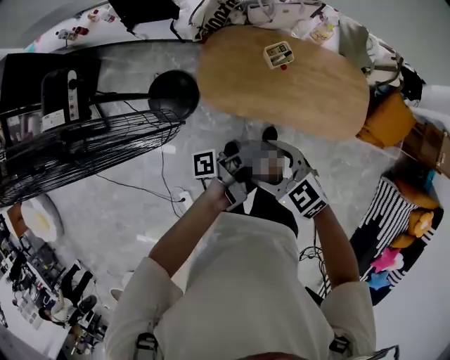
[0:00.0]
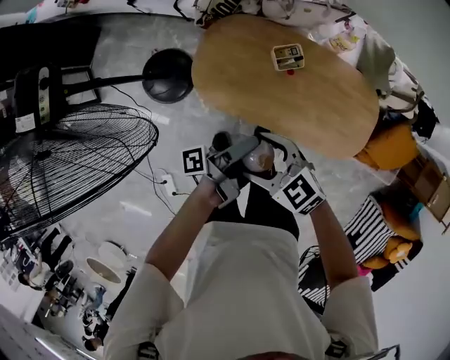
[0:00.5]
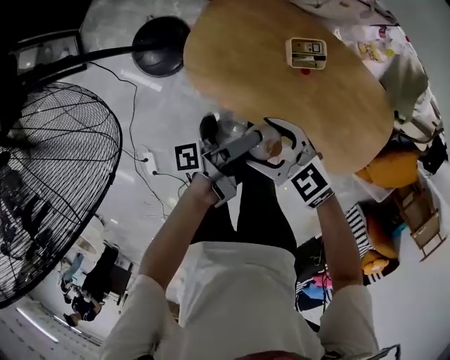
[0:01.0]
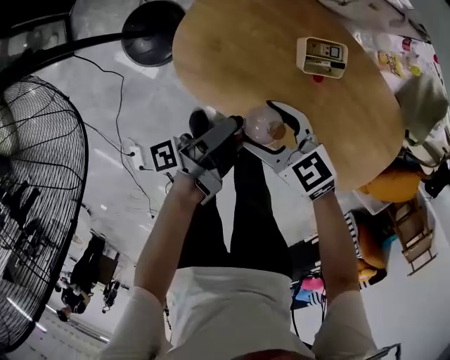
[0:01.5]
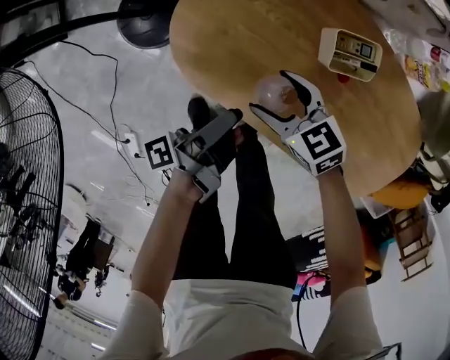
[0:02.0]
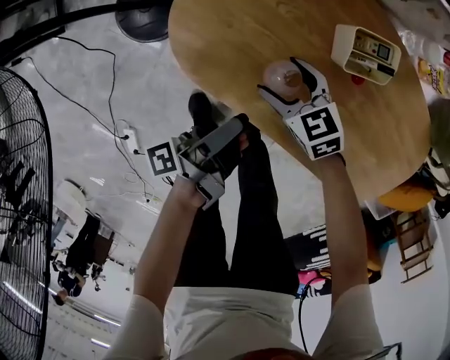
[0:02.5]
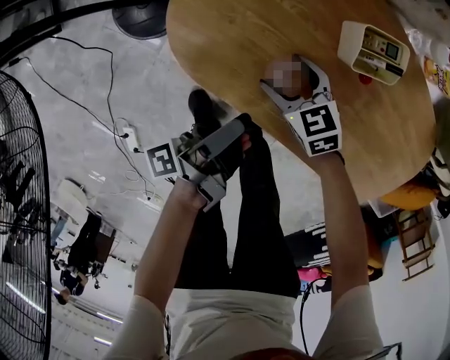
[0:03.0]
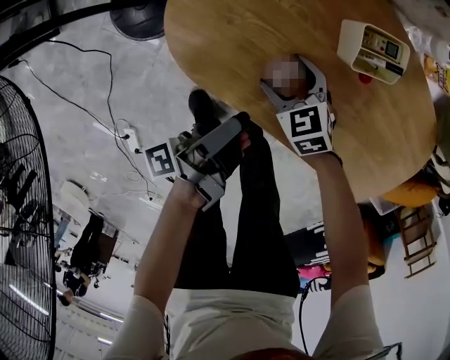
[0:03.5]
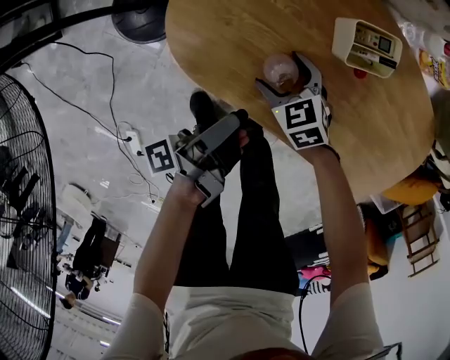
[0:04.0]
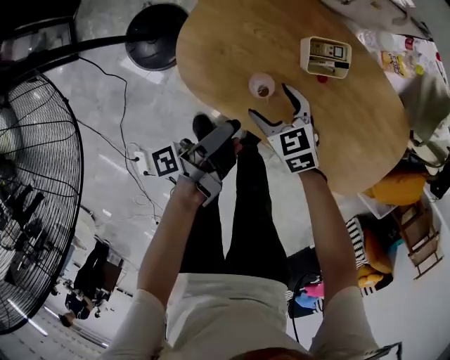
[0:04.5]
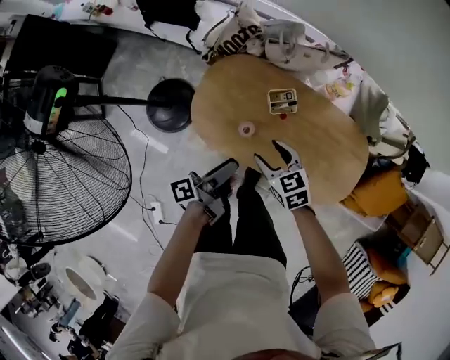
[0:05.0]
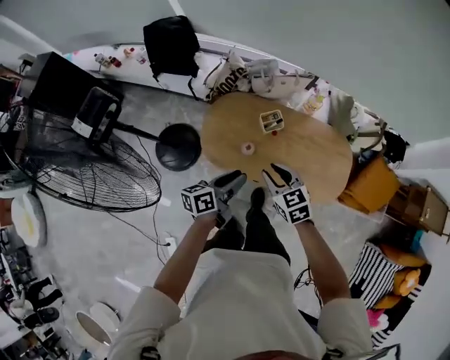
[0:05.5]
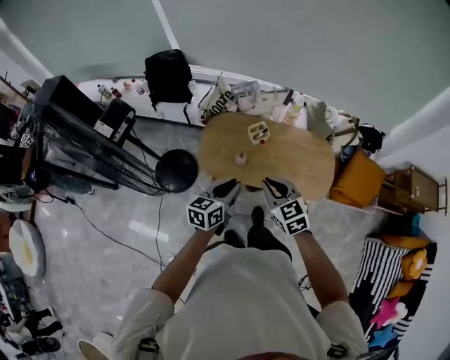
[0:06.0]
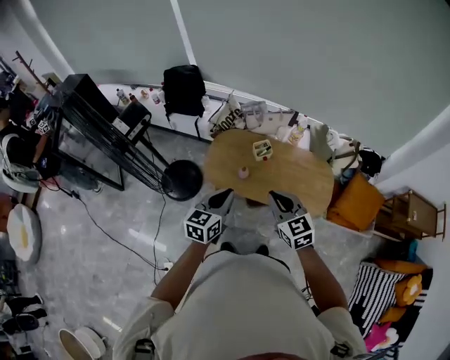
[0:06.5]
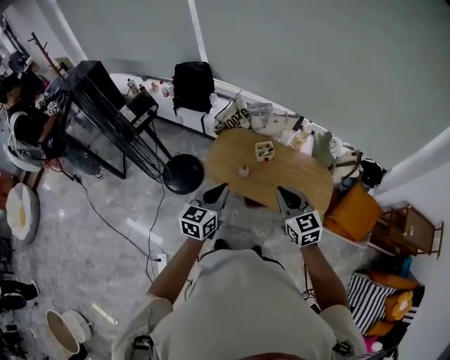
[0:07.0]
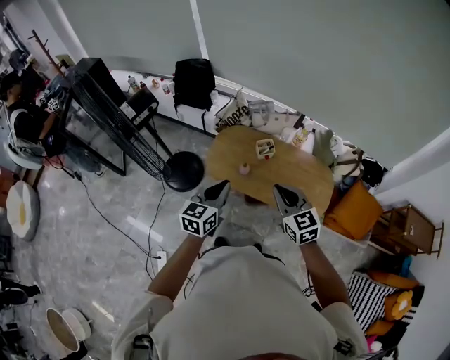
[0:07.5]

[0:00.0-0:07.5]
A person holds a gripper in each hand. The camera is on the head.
0:00.0 to 0:02.0: The right gripper travels downward by about 40 cm.
0:02.0 to 0:04.0: The right gripper travels downward by approximately 10 cm, and changes its angle by roughly 20 degrees.
0:04.0 to 0:05.5: The right gripper travels upward by roughly 50 cm, turns by approximately 30 degrees, and closes.
0:05.5 to 0:07.5: The right gripper goes some 20 cm upward.

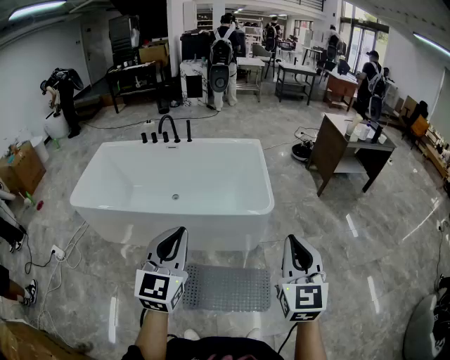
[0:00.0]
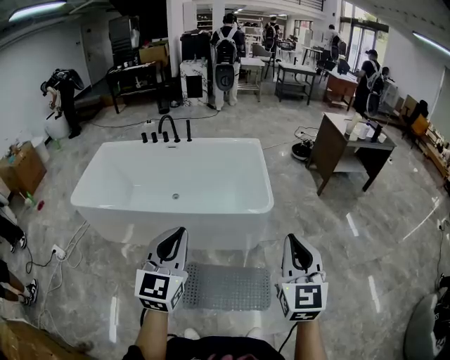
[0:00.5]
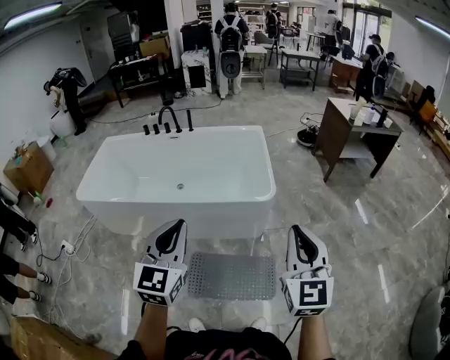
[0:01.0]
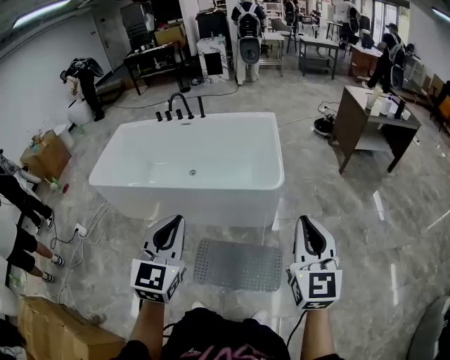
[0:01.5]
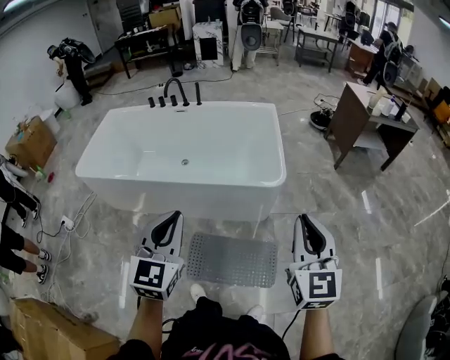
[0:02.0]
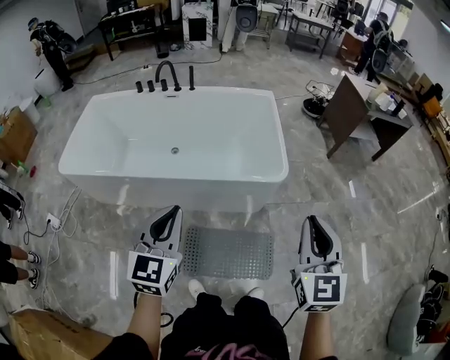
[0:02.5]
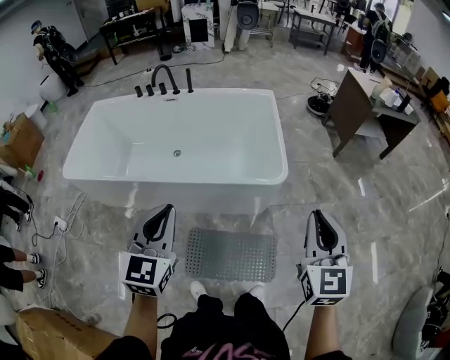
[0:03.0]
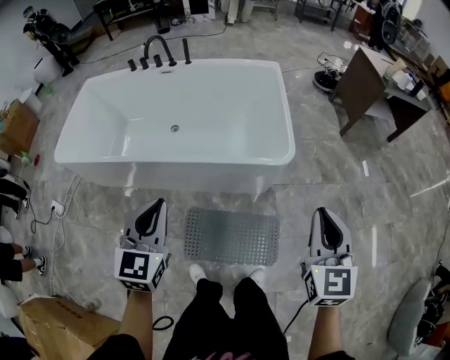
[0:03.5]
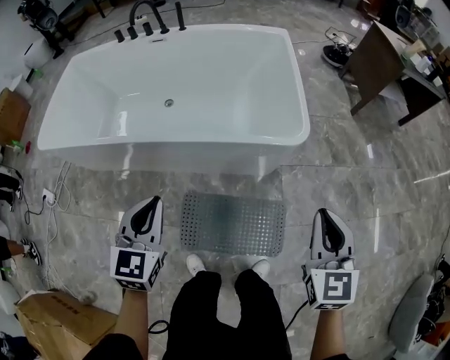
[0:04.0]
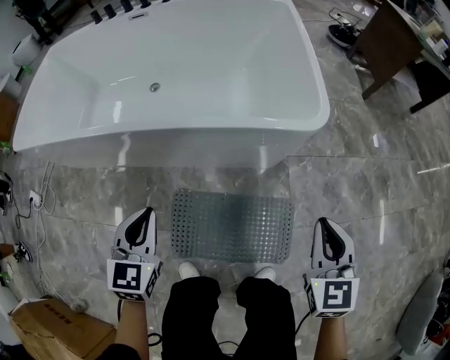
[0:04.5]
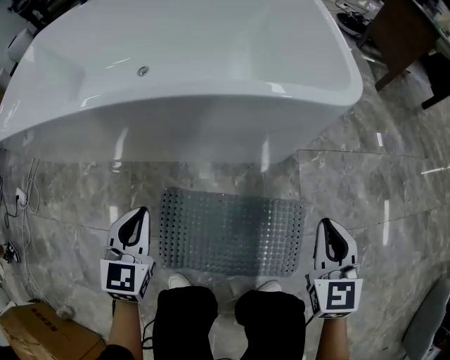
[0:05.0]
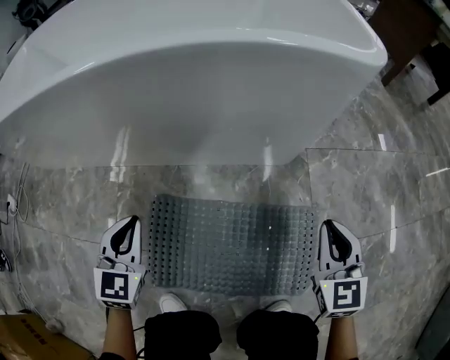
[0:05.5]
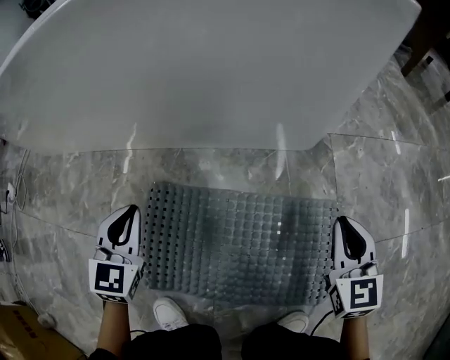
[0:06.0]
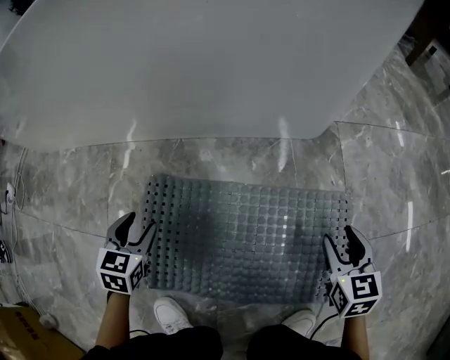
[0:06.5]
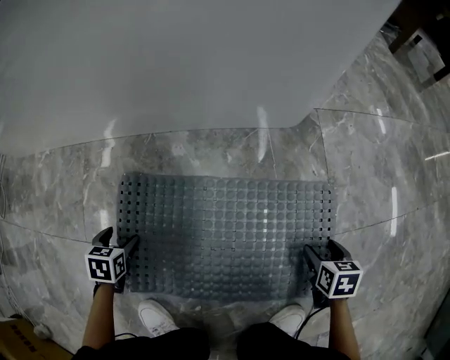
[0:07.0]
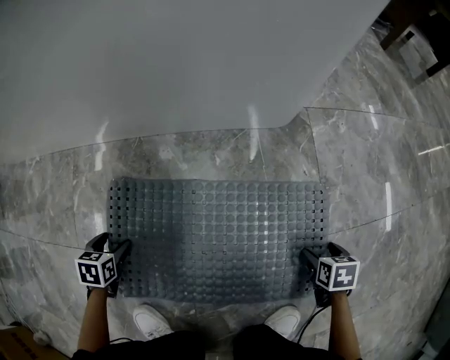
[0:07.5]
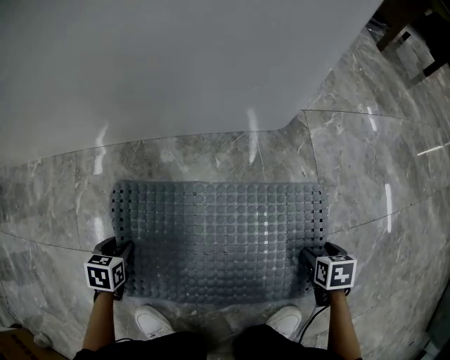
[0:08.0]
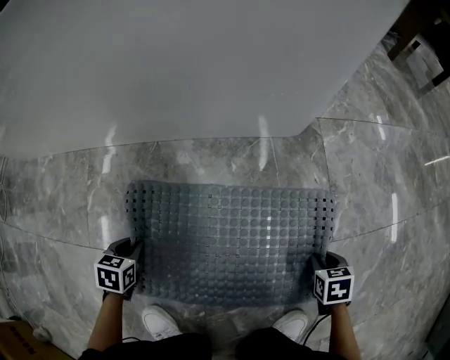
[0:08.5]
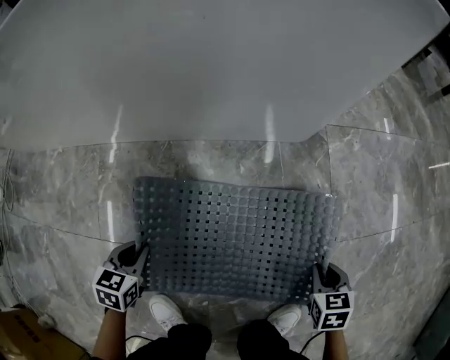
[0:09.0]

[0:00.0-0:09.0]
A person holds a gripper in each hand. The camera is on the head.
0:00.0 to 0:02.0: The right gripper changes place by some 5 cm; the left gripper travels downward by roughly 5 cm.
0:02.0 to 0:04.5: The two grippers go roughly 40 cm downward. The left gripper swivels roughly 20 degrees; the right gripper swivels roughly 20 degrees.
0:04.5 to 0:07.0: The grippers both shift downward by some 60 cm. The right gripper angles its fingers downward, by about 40 degrees, and opens; the left gripper tips its fingers downward by approximately 40 degrees, and opens.
0:07.0 to 0:09.0: Both grippers move upward, some 10 cm. The right gripper closes up; the left gripper closes up.

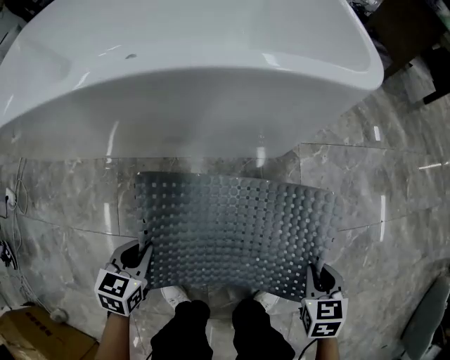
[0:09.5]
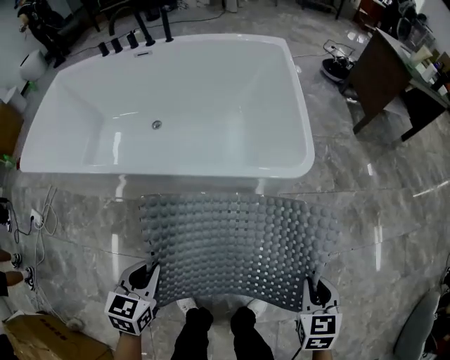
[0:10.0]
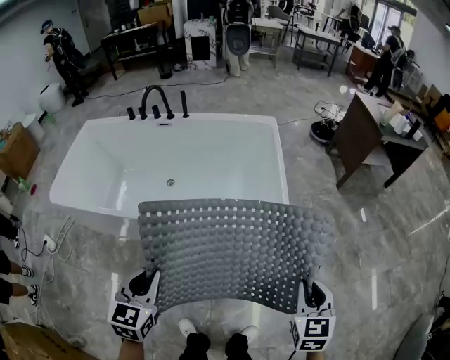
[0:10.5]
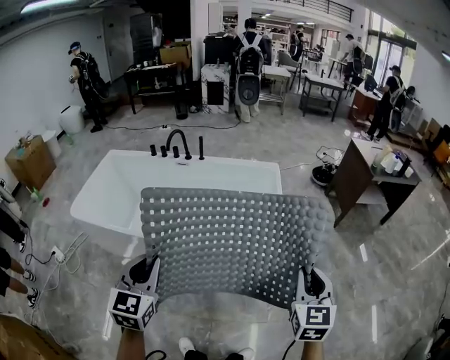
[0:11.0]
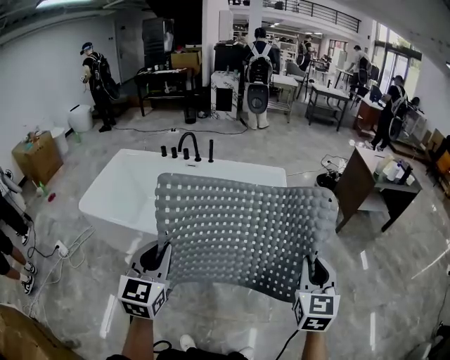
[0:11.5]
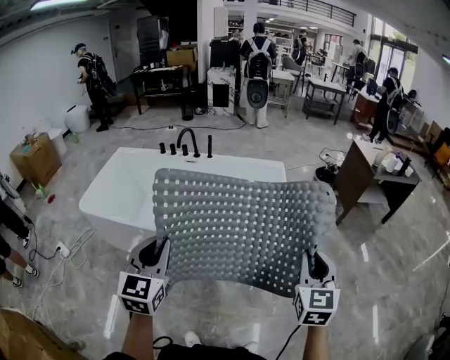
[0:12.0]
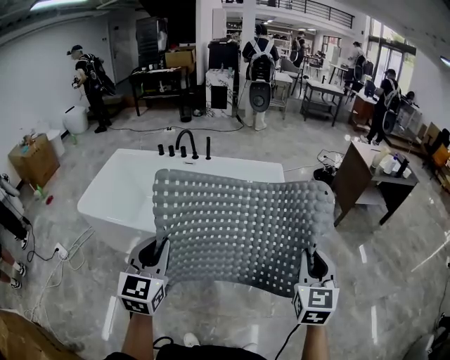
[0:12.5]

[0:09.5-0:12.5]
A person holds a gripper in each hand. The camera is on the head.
0:09.5 to 0:11.0: Both grippers move upward, approximately 70 cm. The left gripper tilts its fingers roughly 40 degrees upward; the right gripper tilts its fingers about 40 degrees upward.
0:11.0 to 0:12.5: The right gripper moves about 5 cm.

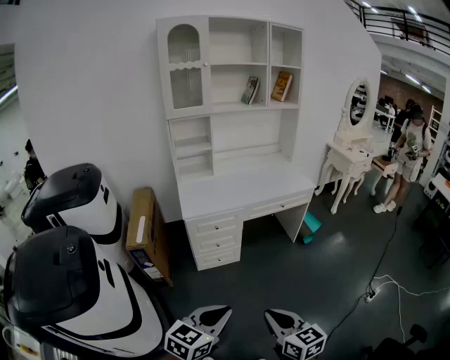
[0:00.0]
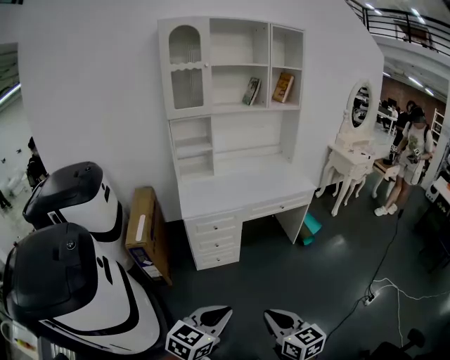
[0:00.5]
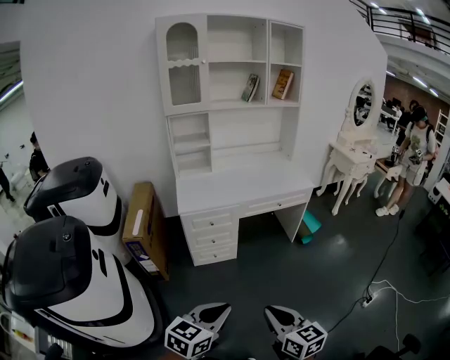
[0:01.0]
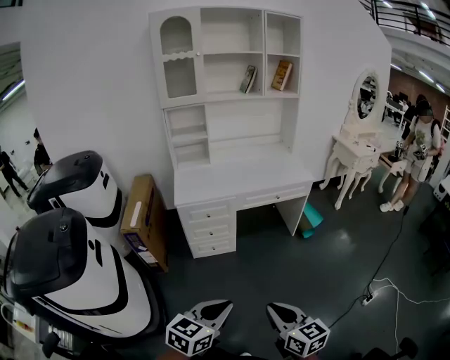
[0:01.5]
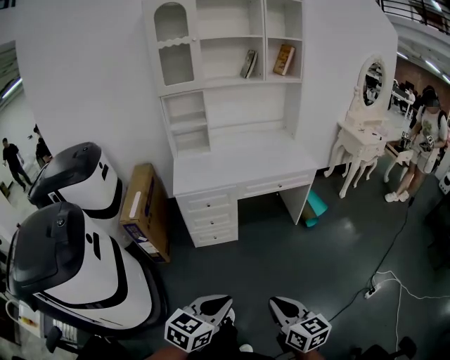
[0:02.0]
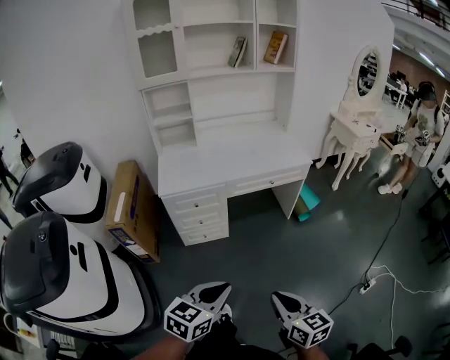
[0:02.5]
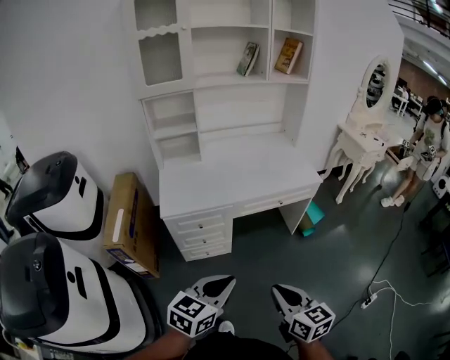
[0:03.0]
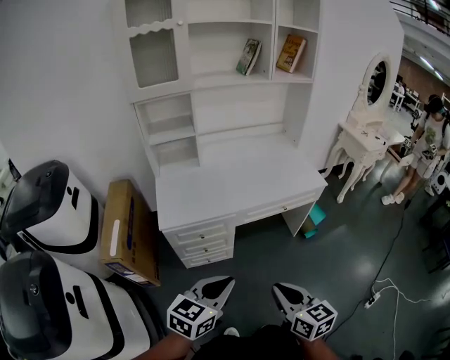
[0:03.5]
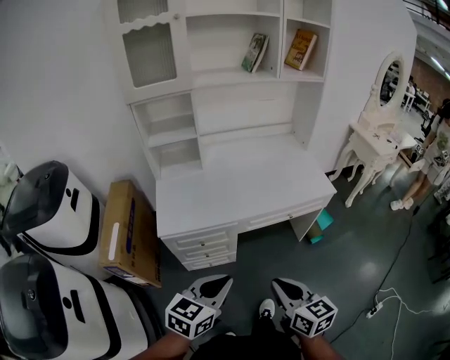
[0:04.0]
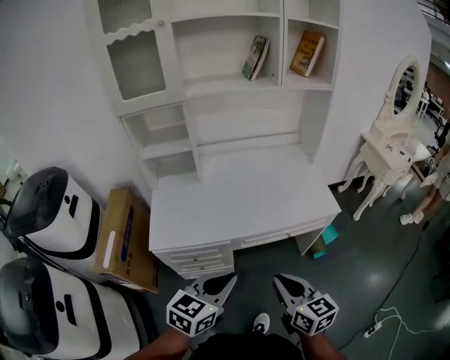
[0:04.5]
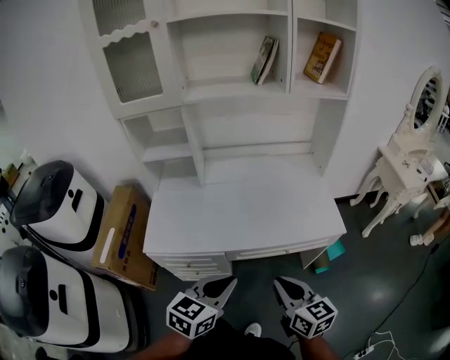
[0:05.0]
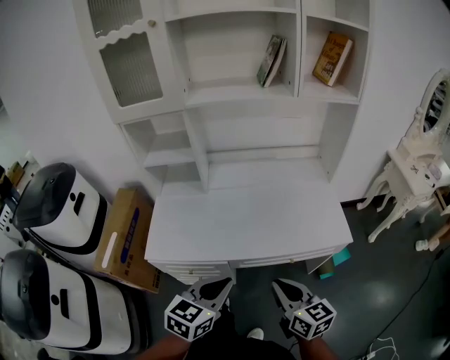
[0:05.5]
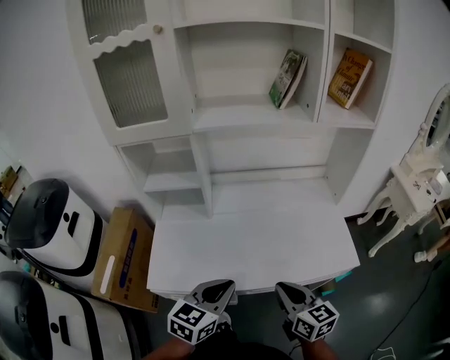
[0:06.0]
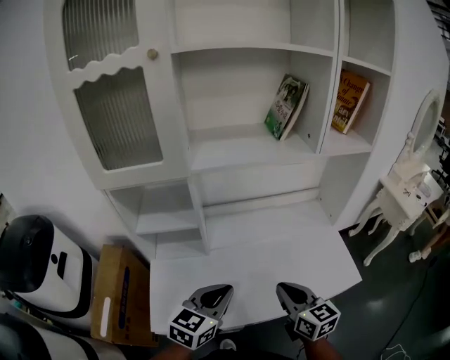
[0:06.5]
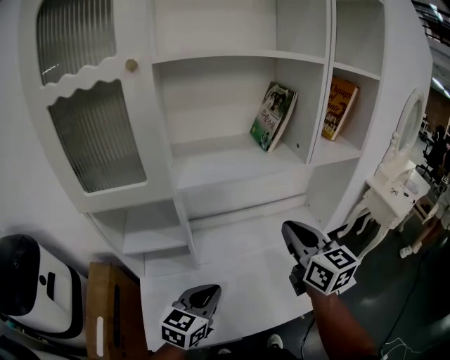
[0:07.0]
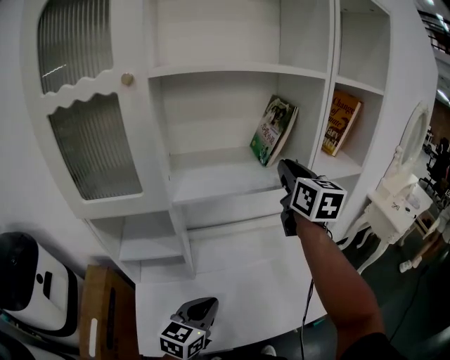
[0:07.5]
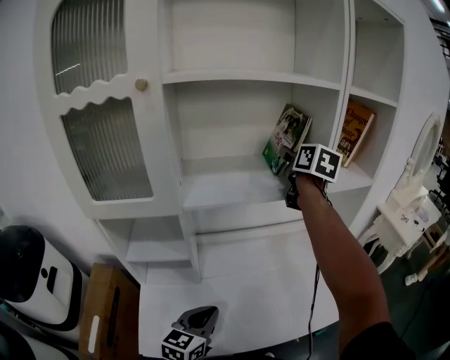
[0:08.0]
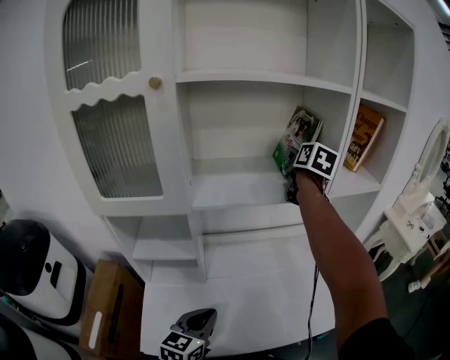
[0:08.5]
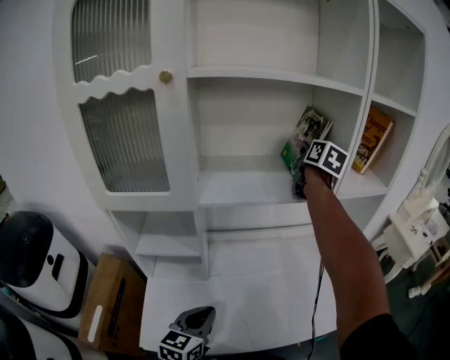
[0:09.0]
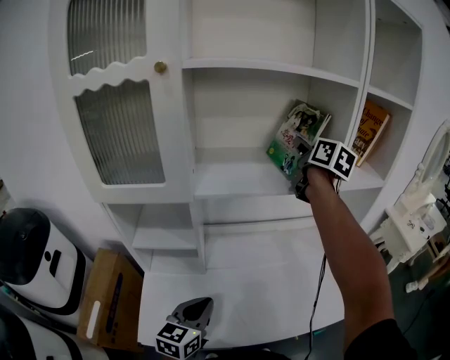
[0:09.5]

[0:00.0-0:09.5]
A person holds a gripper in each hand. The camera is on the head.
0:00.0 to 0:02.0: The two grippers go about 15 cm to the right.
0:02.0 to 0:04.0: Both grippers travel together forward, approximately 40 cm.
0:04.0 to 0:05.5: The two grippers go some 25 cm forward and to the right.
0:05.5 to 0:07.5: The right gripper heads forward and upward, covering some 60 cm, and swivels some 30 degrees. The left gripper is displaced forward and to the left by approximately 30 cm.
0:07.5 to 0:09.5: The right gripper shifts approximately 10 cm forward, and opens, then closes once more.
